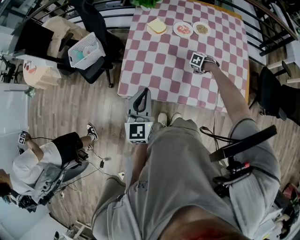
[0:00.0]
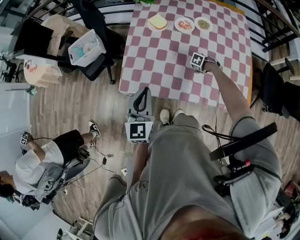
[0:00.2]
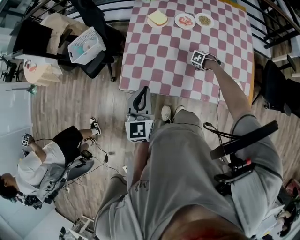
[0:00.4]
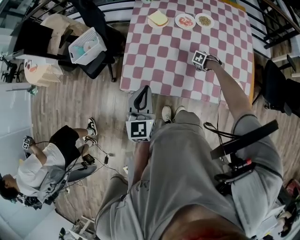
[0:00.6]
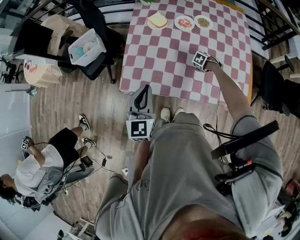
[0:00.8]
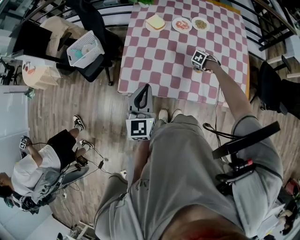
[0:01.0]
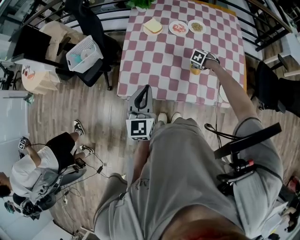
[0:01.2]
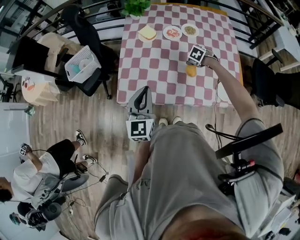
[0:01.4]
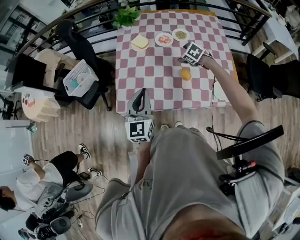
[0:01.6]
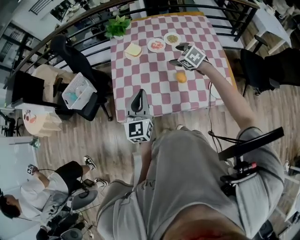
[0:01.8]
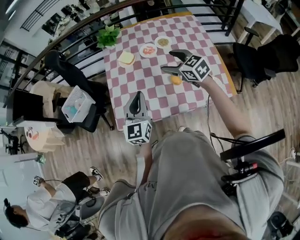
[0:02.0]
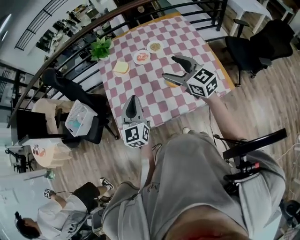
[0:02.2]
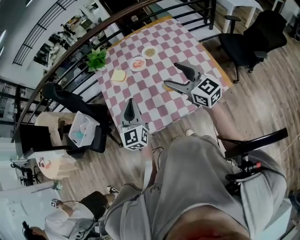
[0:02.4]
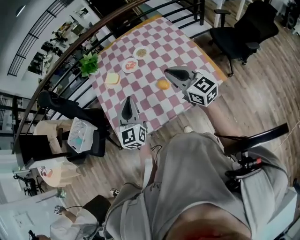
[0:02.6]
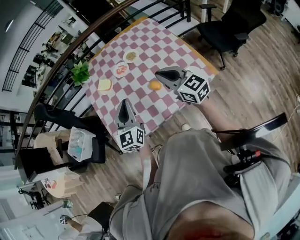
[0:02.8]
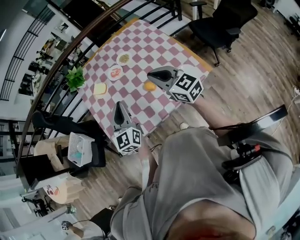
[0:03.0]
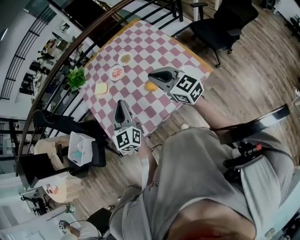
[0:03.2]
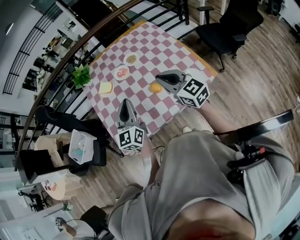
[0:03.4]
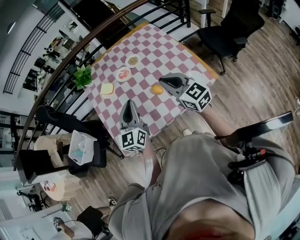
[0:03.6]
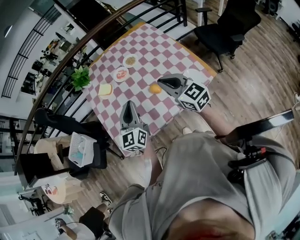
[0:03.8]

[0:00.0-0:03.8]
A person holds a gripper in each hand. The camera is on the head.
0.0 to 1.2 s: The grippers move only a little.
1.2 to 2.6 s: The left gripper moves some 15 cm, and changes its angle by roughly 20 degrees. Meanwhile the right gripper is displaced upward by roughly 40 cm, angles its fingers upward, by roughly 80 degrees, and closes up.
2.6 to 3.8 s: There are only small adjustments of the grippers.

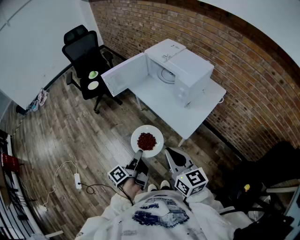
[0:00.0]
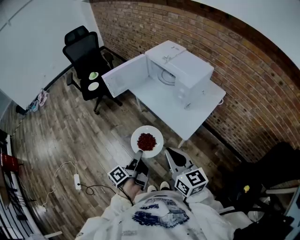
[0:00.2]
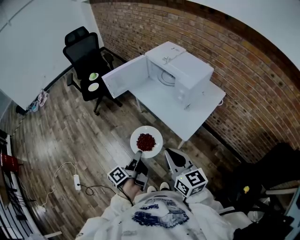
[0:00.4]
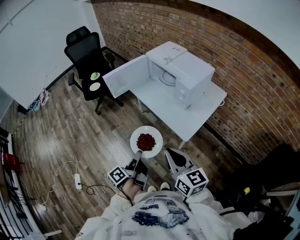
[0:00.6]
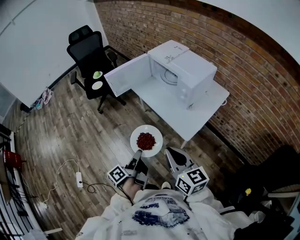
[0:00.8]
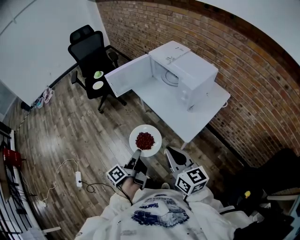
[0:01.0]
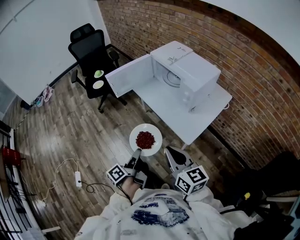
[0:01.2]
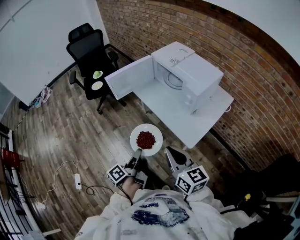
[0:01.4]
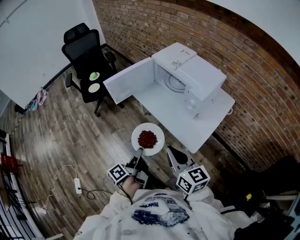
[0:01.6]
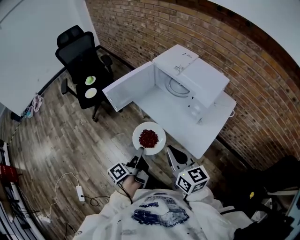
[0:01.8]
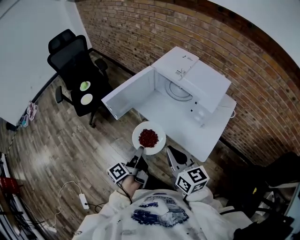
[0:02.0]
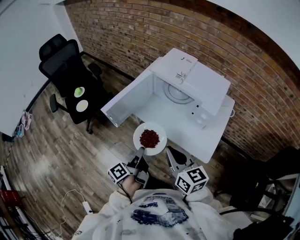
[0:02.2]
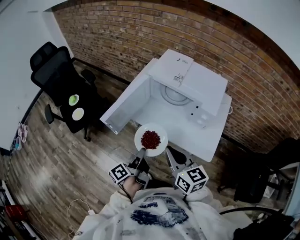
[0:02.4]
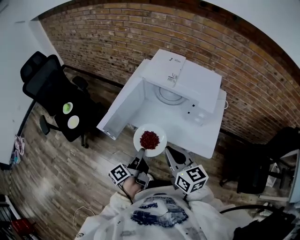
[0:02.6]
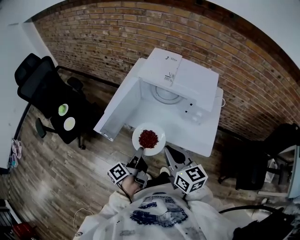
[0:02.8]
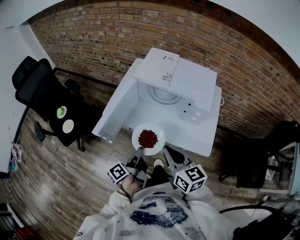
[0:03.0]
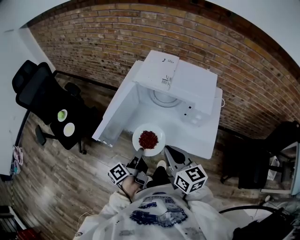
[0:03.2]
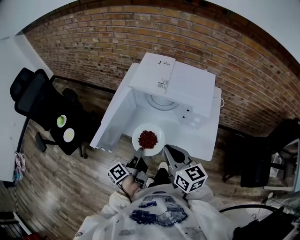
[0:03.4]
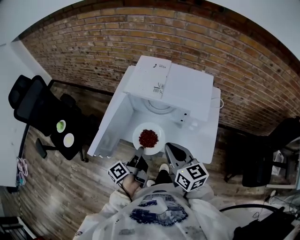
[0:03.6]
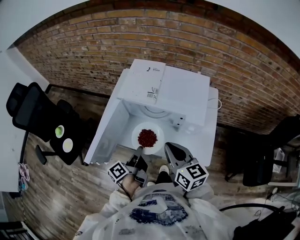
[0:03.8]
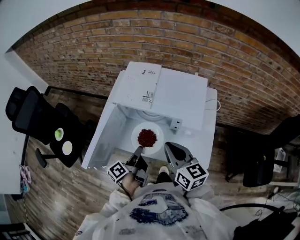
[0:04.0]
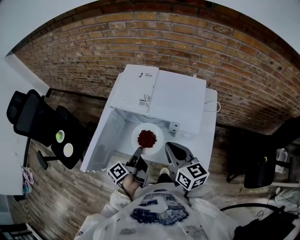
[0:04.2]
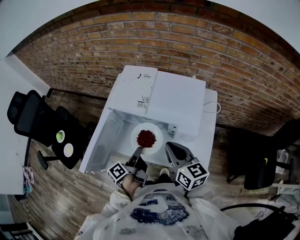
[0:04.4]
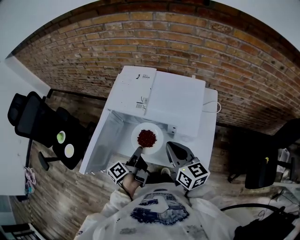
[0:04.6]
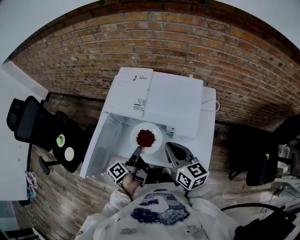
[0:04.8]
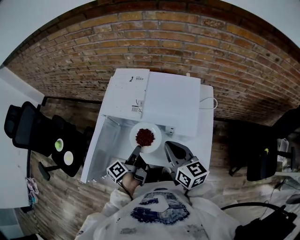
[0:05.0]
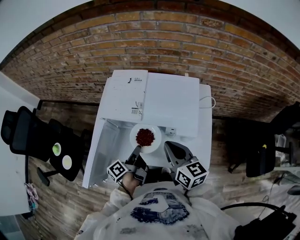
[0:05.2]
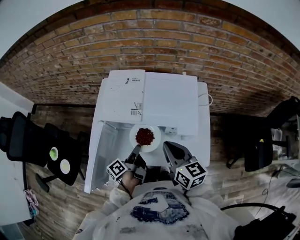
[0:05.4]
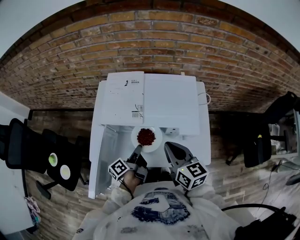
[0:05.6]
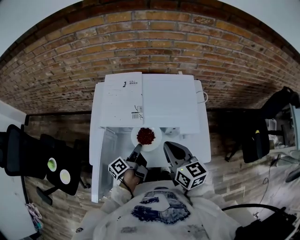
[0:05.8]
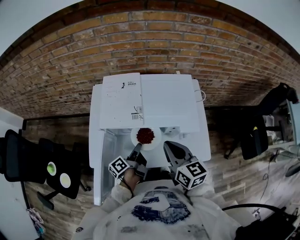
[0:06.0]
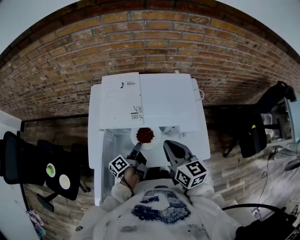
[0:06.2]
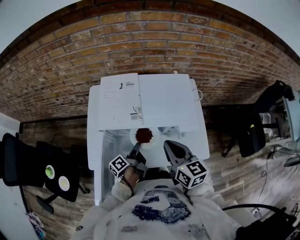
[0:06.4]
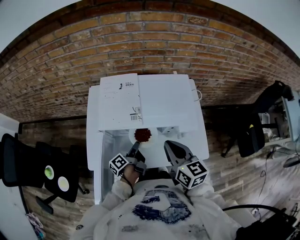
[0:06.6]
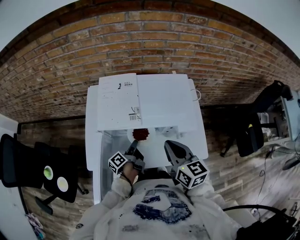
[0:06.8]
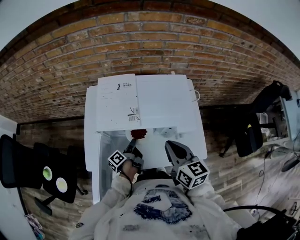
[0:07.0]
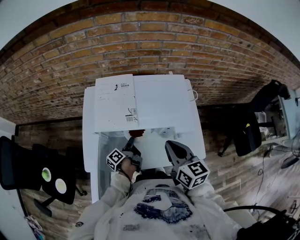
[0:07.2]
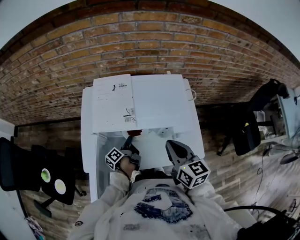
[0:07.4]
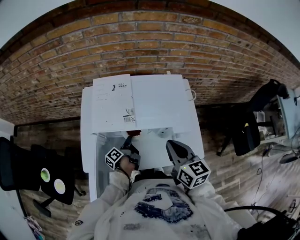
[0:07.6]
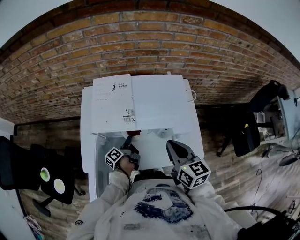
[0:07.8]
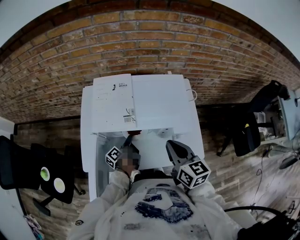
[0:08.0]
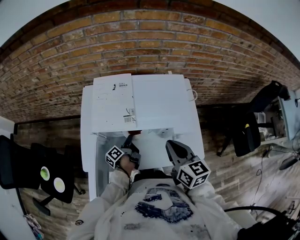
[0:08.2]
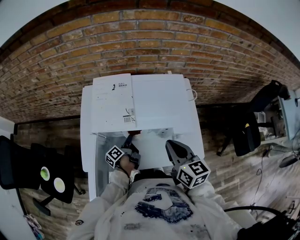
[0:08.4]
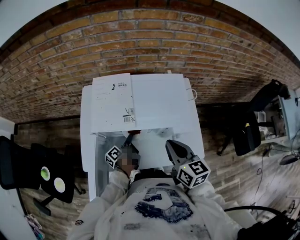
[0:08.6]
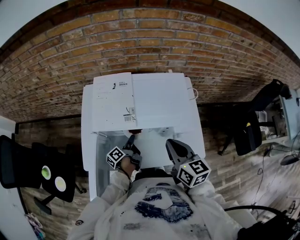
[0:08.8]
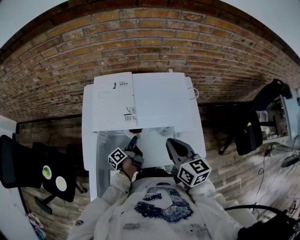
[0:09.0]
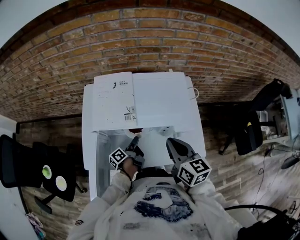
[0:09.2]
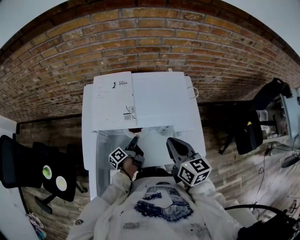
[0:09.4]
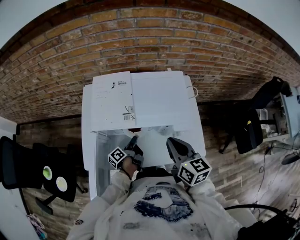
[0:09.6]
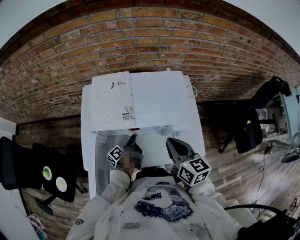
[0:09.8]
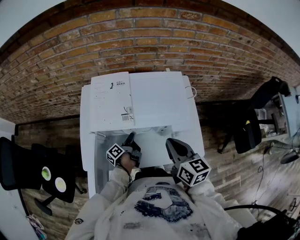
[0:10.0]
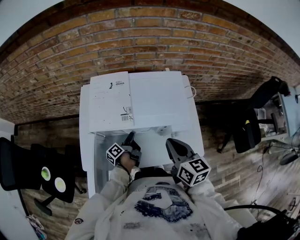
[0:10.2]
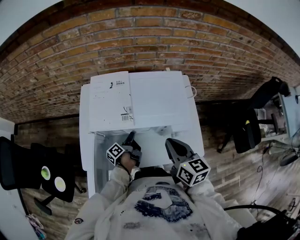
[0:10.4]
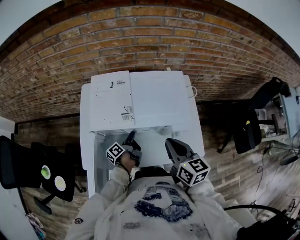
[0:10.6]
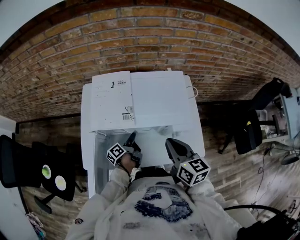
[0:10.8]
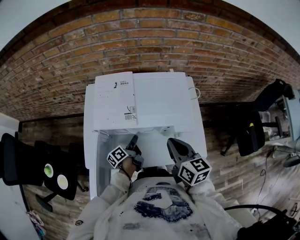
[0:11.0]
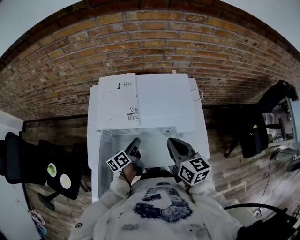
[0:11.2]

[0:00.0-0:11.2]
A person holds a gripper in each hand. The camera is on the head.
0.0 to 1.6 s: The right gripper ends up about 10 cm from where it was.
1.6 to 3.2 s: The right gripper shifts by roughly 25 cm, and turns by some 30 degrees.
3.2 to 4.8 s: The right gripper shifts by some 20 cm.

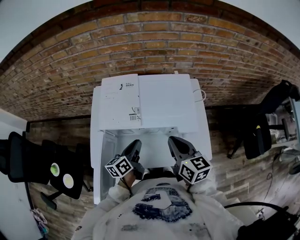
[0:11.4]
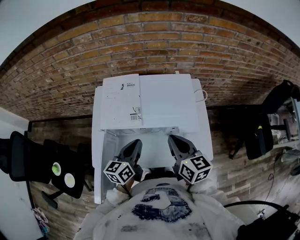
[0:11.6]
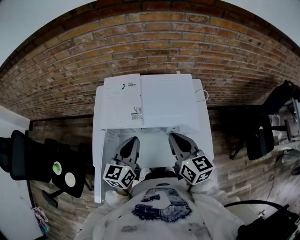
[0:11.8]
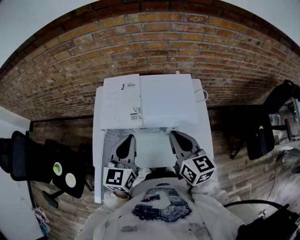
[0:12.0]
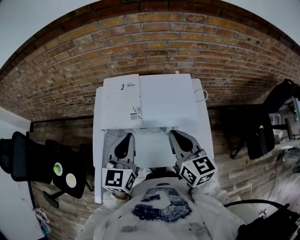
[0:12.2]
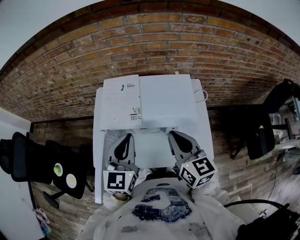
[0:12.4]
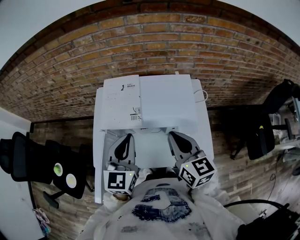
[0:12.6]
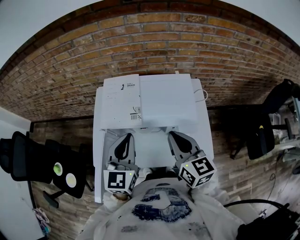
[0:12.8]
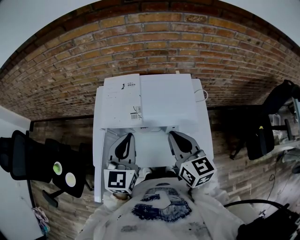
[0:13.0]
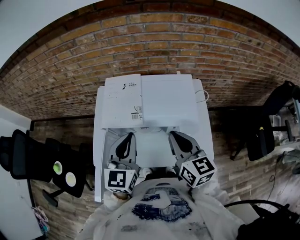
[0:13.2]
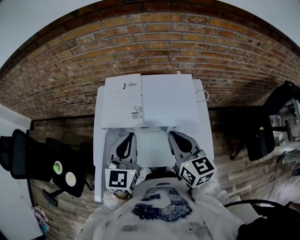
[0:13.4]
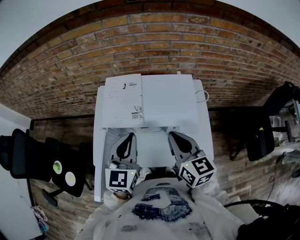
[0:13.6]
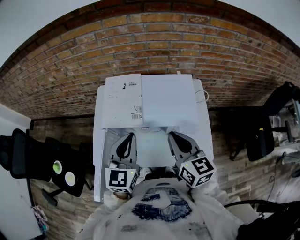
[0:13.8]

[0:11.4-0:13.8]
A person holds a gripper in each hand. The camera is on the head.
11.4 to 12.6 s: The right gripper goes roughly 5 cm upward.

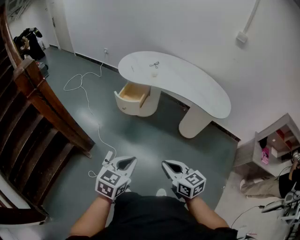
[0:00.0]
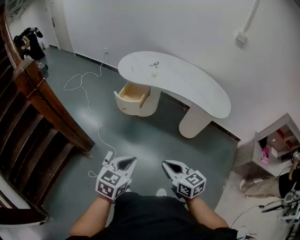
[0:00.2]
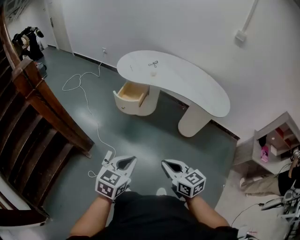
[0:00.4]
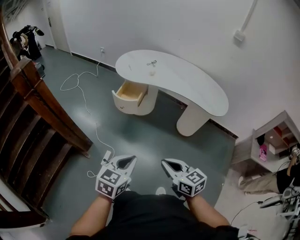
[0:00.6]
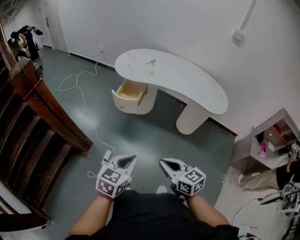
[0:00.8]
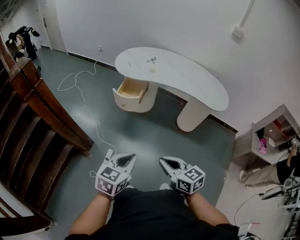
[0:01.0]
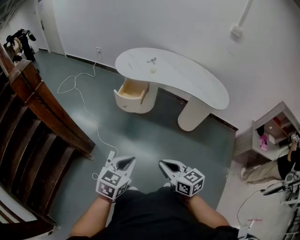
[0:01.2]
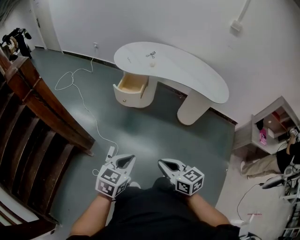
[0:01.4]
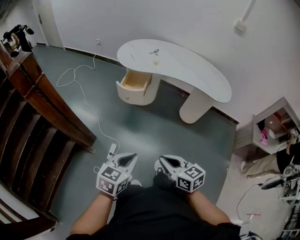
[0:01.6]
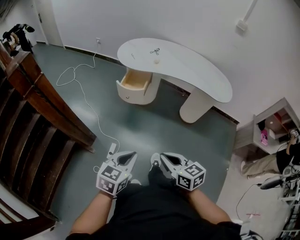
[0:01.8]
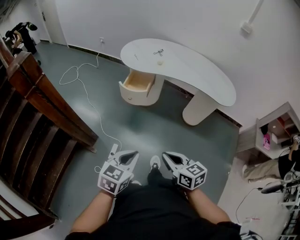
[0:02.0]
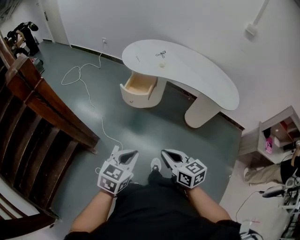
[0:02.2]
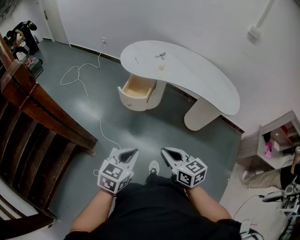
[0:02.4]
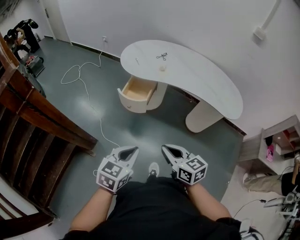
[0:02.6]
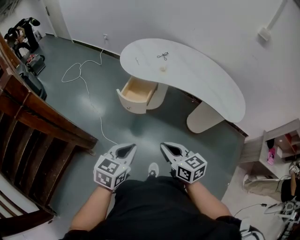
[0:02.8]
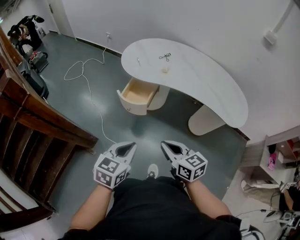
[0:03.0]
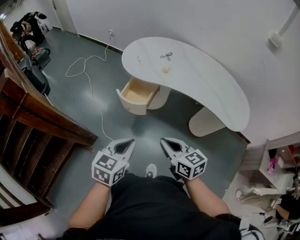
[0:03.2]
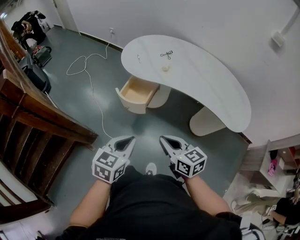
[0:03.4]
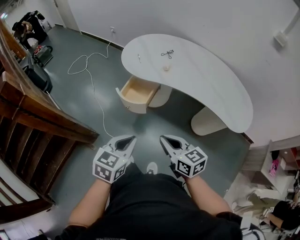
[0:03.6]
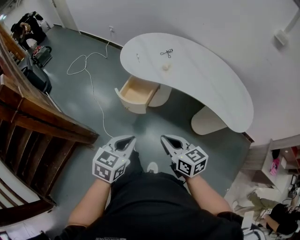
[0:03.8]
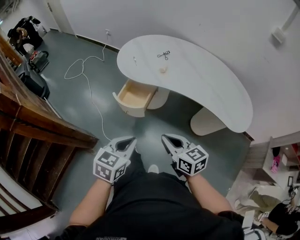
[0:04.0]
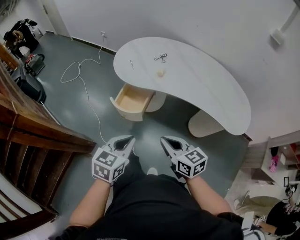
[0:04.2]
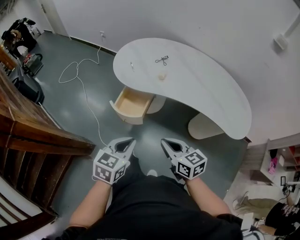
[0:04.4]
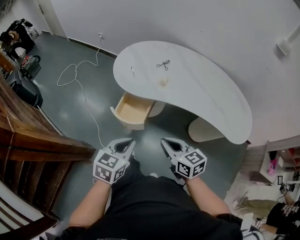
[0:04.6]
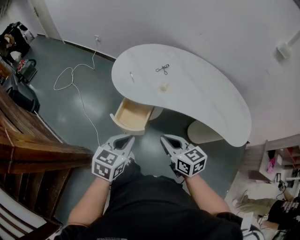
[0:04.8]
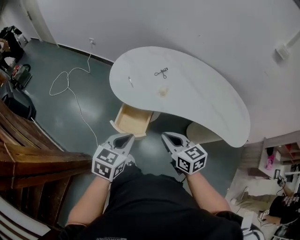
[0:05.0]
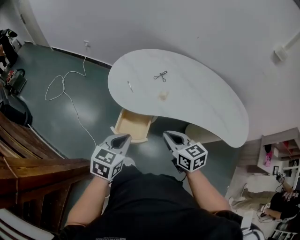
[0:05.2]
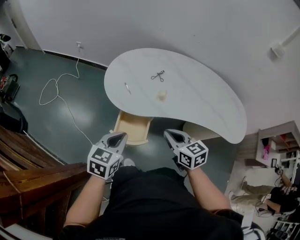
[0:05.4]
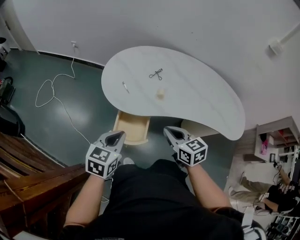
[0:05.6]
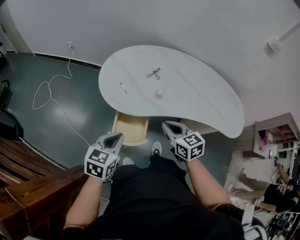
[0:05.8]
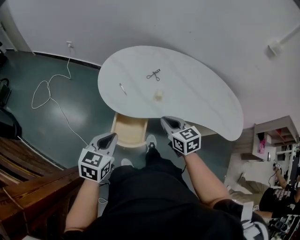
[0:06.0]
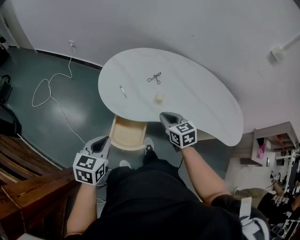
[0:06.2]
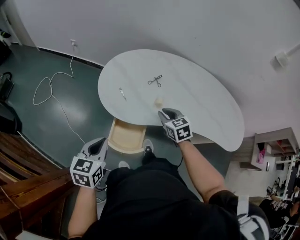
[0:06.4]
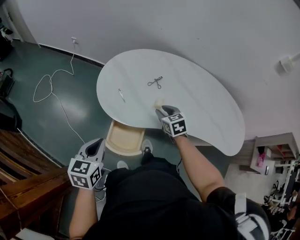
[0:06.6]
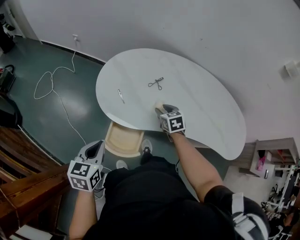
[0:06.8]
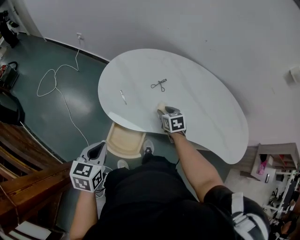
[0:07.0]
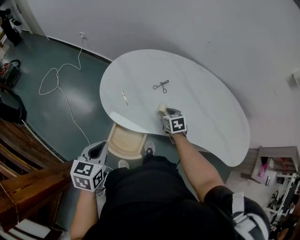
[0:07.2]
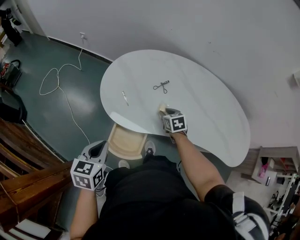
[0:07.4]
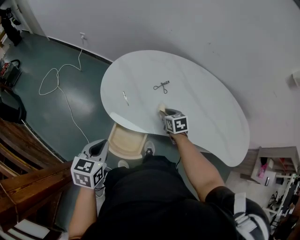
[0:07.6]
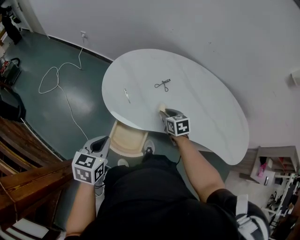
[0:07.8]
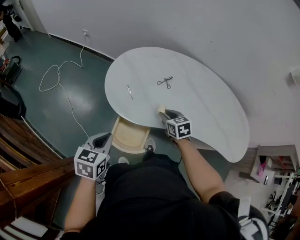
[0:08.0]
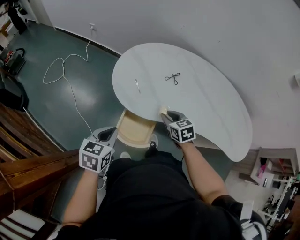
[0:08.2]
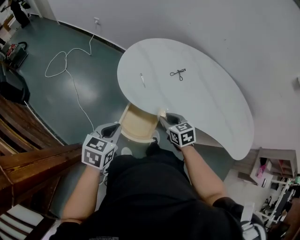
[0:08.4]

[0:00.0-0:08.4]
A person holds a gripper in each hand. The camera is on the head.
0.0 to 1.4 s: Both grippers travel together to the left, roughly 10 cm.
1.4 to 2.8 s: The grippers both shift forward by some 20 cm.
2.8 to 4.2 s: The right gripper shifts approximately 15 cm forward and to the right; the left gripper goes roughly 15 cm forward.
4.2 to 5.6 s: The right gripper moves forward, approximately 25 cm. Meanwhile the left gripper shifts about 30 cm forward and to the left.
5.6 to 7.0 s: The left gripper goes some 5 cm forward. Meanwhile the right gripper goes some 30 cm forward and downward, rotates approximately 20 degrees, and opens its fingers.
7.0 to 8.4 s: The right gripper travels backward and to the left by roughly 15 cm.
